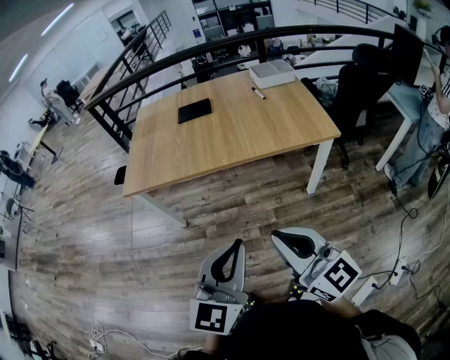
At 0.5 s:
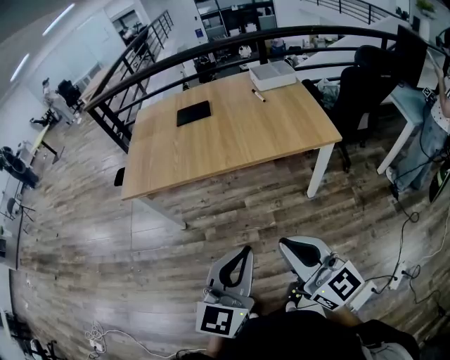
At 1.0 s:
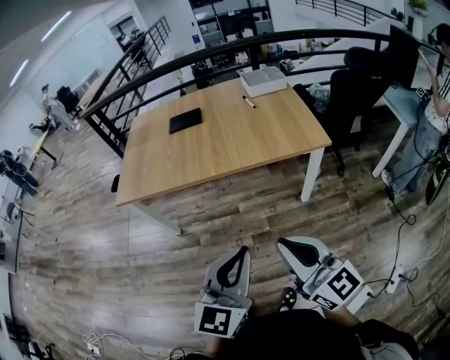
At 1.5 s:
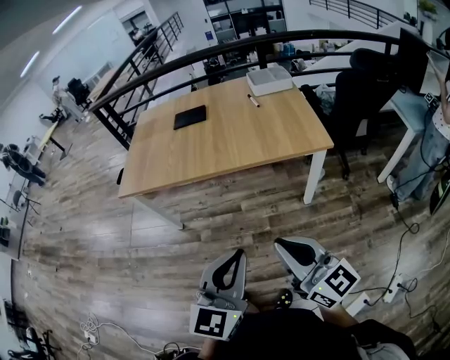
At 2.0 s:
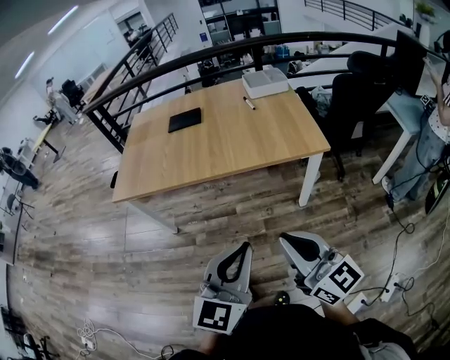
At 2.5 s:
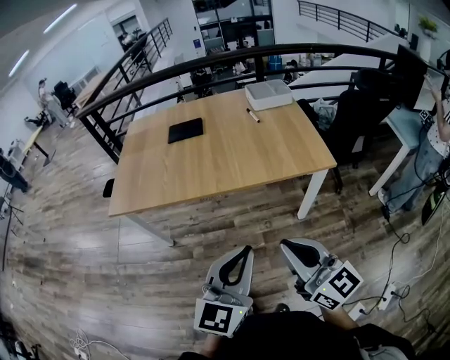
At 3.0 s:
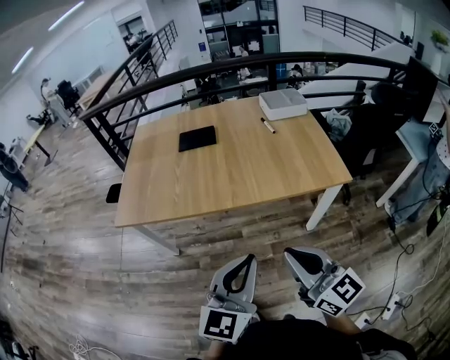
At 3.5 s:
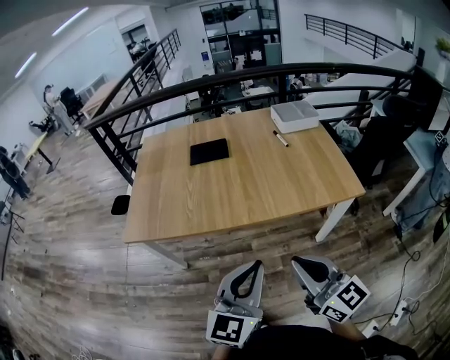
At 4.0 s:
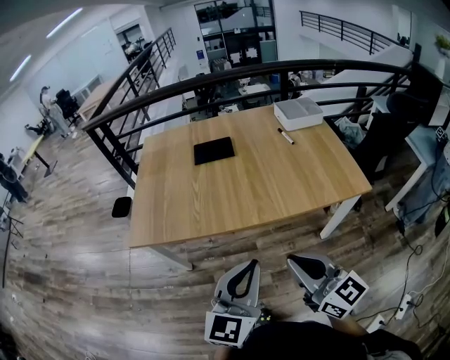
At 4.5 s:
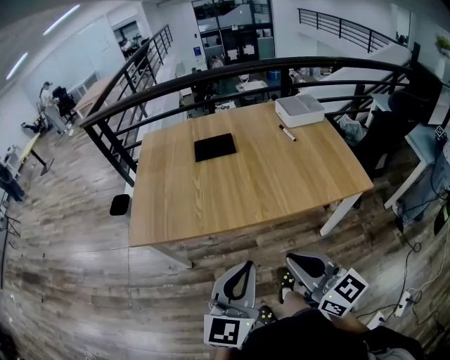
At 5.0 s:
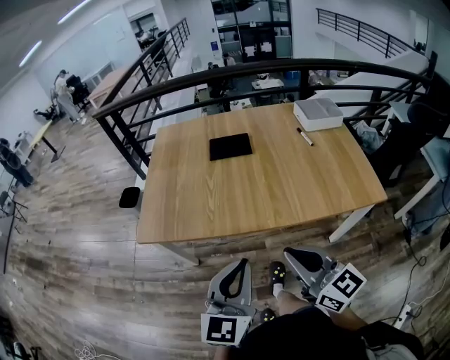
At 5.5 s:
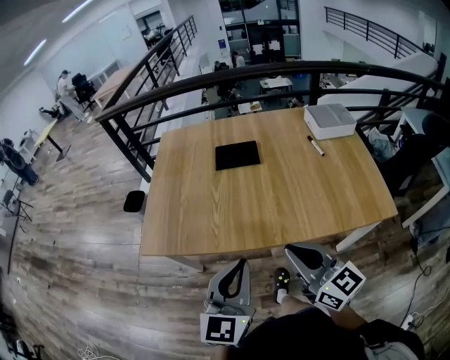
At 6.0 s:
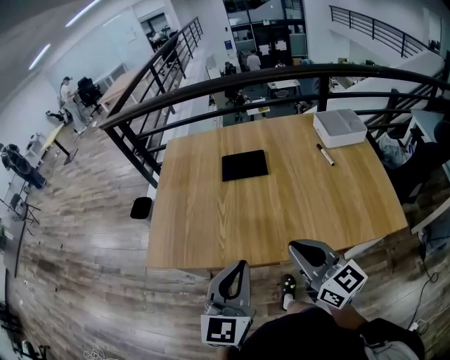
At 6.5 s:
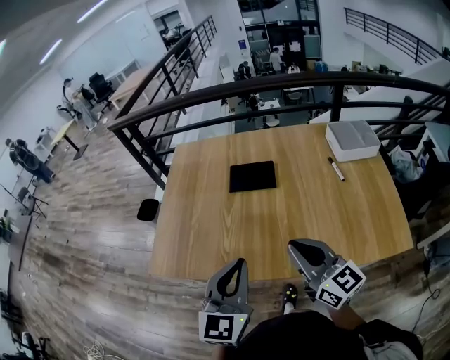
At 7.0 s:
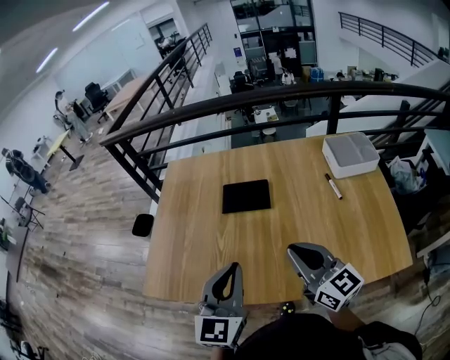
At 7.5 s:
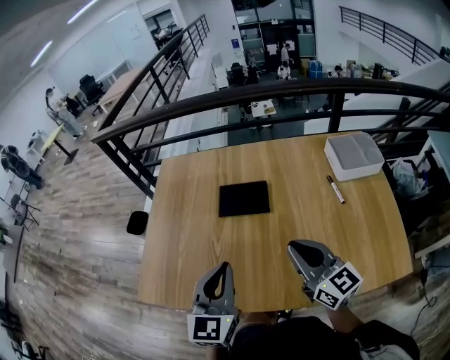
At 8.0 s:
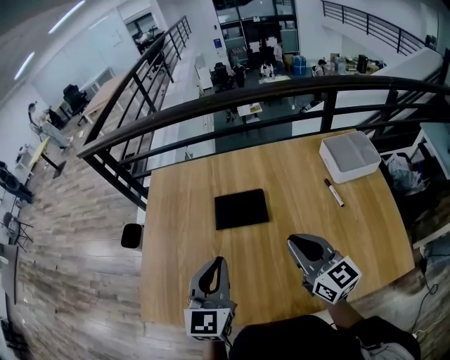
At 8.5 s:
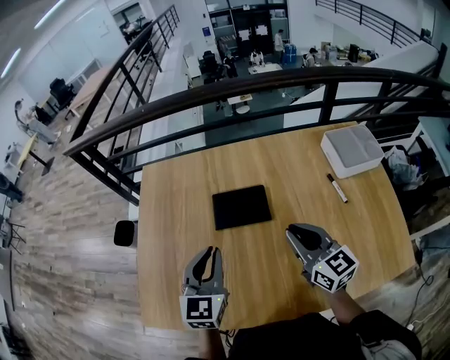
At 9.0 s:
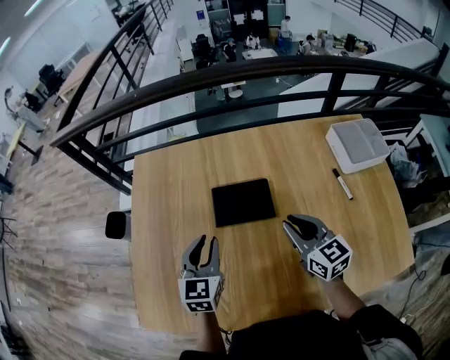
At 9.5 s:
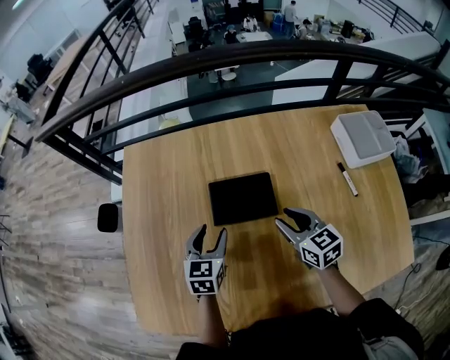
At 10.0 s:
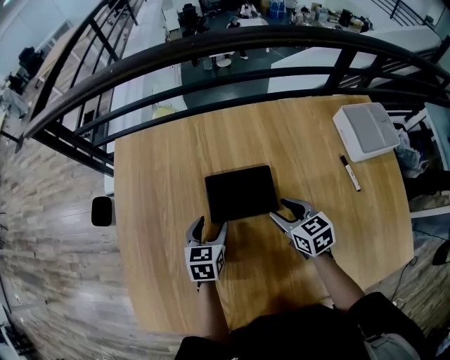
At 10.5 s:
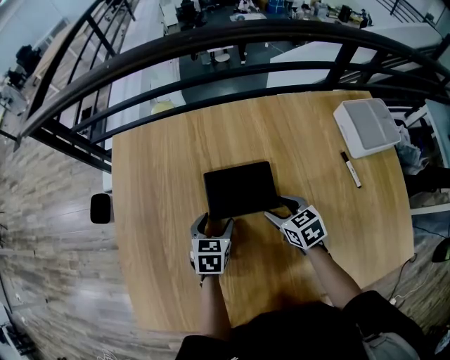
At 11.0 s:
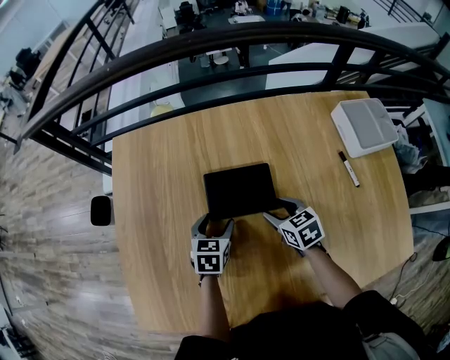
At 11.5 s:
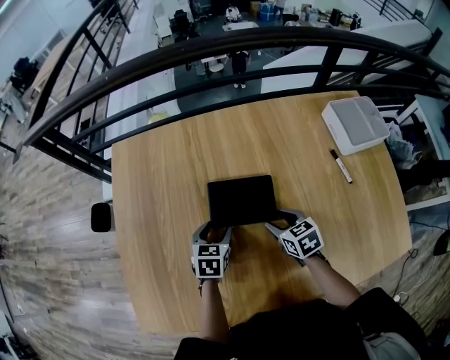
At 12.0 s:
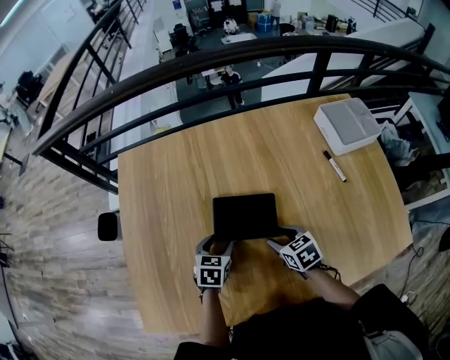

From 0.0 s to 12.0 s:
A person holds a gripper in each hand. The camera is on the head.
From 0.0 s to 2.0 s: The two grippers go approximately 15 cm to the right.
From 2.0 s to 4.0 s: The left gripper goes some 30 cm forward and to the left. Meanwhile the right gripper shifts approximately 30 cm to the left and forward.
From 4.0 s to 6.0 s: The grippers both shift forward by approximately 20 cm.
From 6.0 s to 8.0 s: Both grippers travel together forward, about 30 cm.
From 8.0 s to 10.0 s: The two grippers go approximately 30 cm downward and forward. The left gripper swivels about 30 degrees, and opens up. The right gripper angles its fingers downward, by approximately 30 degrees, and opens.
From 10.0 s to 12.0 s: Both grippers move backward, roughly 10 cm.

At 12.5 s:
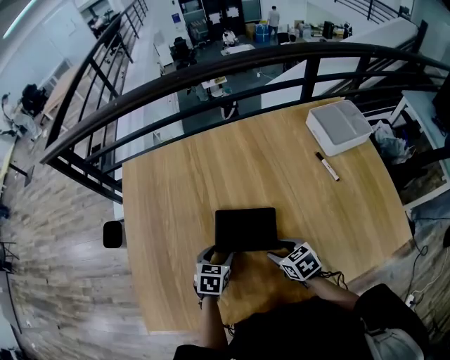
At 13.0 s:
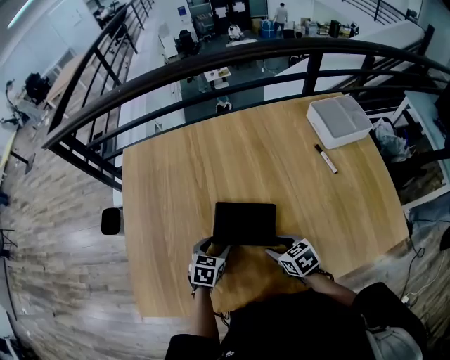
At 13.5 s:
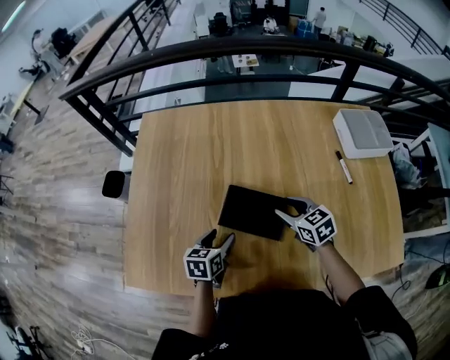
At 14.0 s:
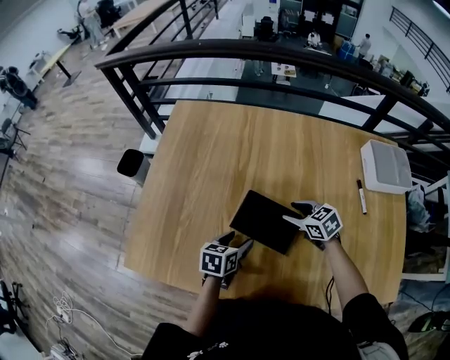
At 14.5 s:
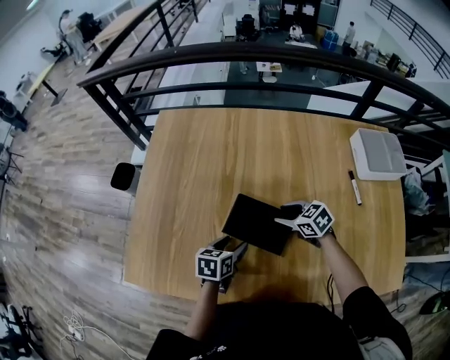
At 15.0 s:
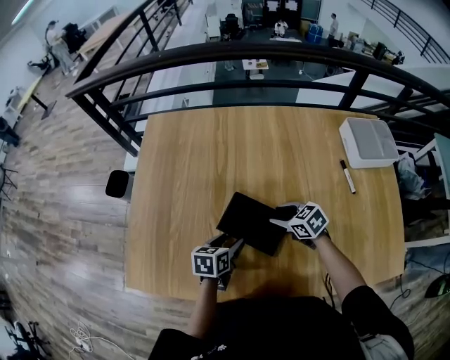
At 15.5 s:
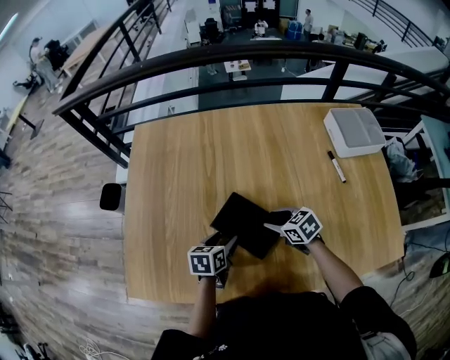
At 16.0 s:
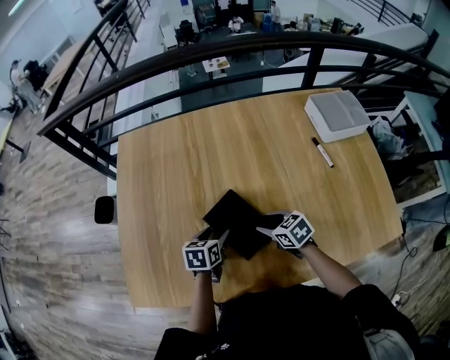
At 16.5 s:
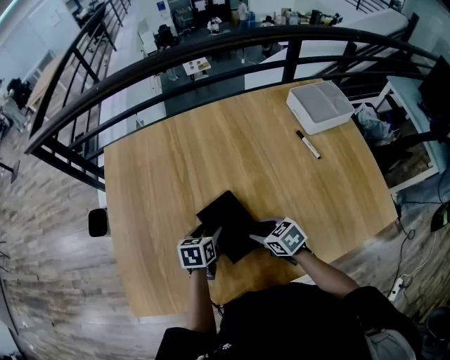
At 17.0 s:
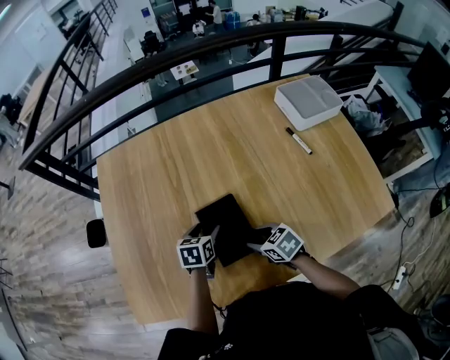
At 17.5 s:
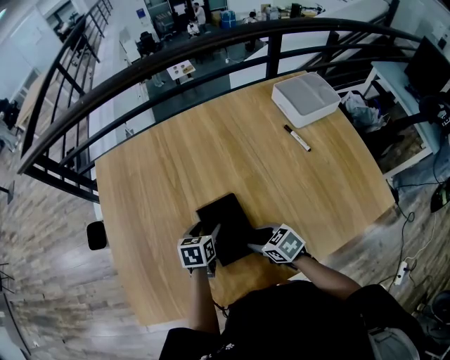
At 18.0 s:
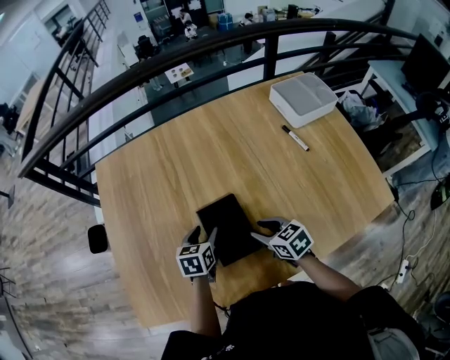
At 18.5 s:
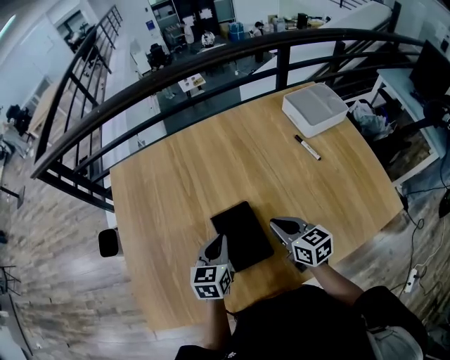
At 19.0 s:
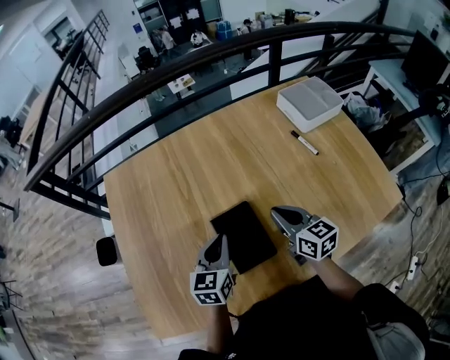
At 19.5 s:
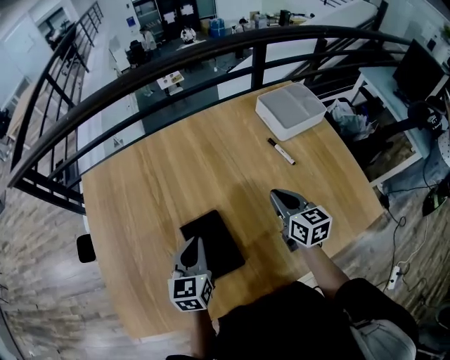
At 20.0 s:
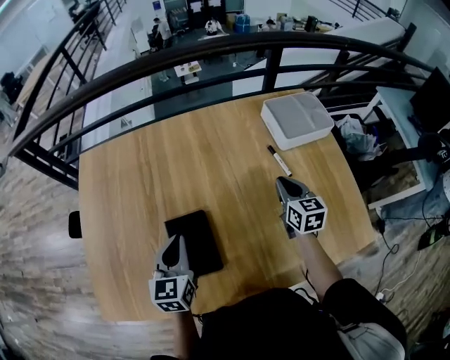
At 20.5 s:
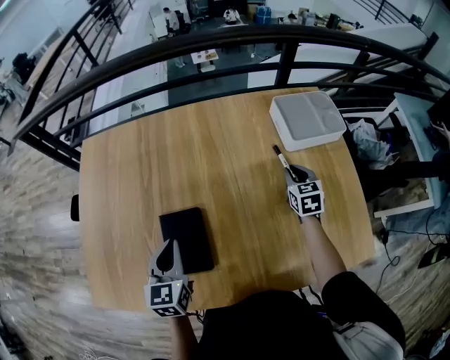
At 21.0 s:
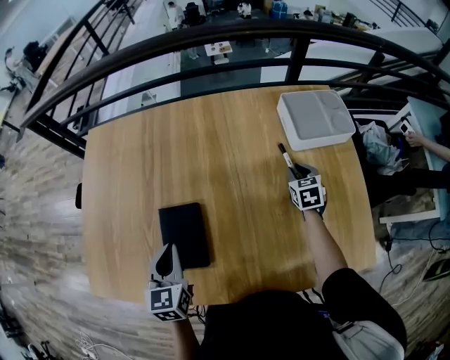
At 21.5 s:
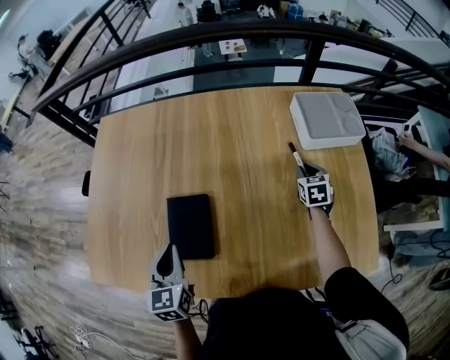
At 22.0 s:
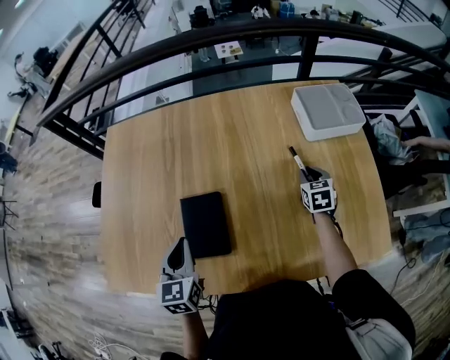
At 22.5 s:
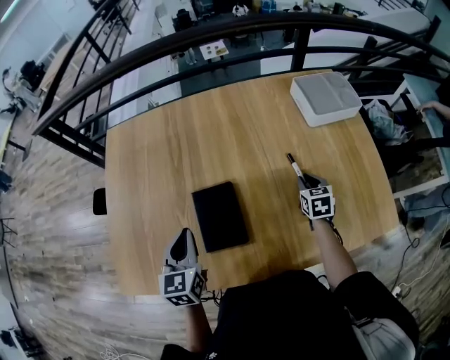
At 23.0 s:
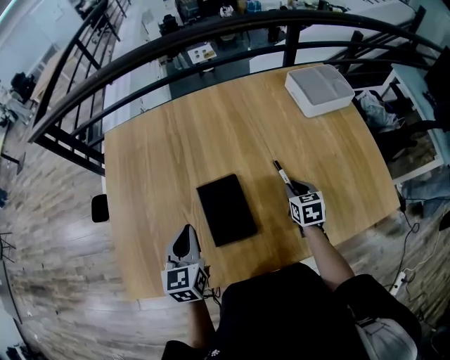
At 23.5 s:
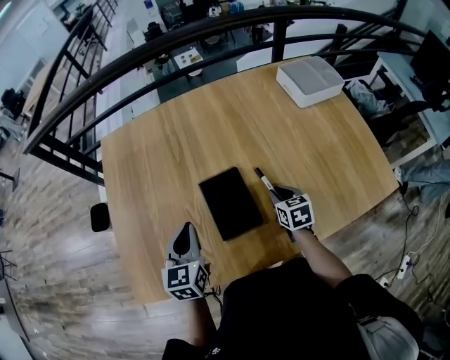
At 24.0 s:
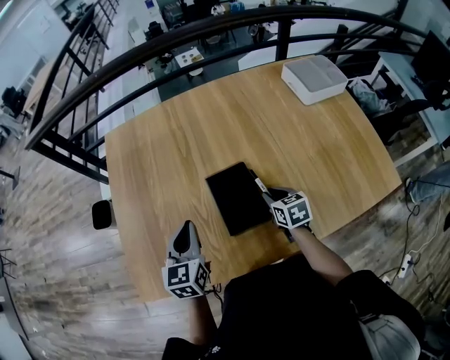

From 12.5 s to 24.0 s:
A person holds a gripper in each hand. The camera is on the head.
From 12.5 s to 14.5 s: The right gripper heads forward, covering about 10 cm, and rotates about 30 degrees, while the left gripper rotates some 30 degrees.
From 14.5 s to 16.5 s: The right gripper heads backward, covering approximately 10 cm, and rotates some 20 degrees.
From 16.5 s to 18.5 s: The two grippers go some 10 cm upward. The right gripper swivels some 30 degrees, and closes up. The left gripper rotates about 20 degrees, and closes up.
From 18.5 s to 20.0 s: The left gripper heads upward, covering some 5 cm; the right gripper moves to the right and forward, approximately 25 cm.
From 20.0 s to 22.0 s: The left gripper heads backward, covering about 5 cm. Meanwhile the right gripper heads downward, covering about 10 cm, and changes its angle by roughly 20 degrees.
From 22.0 s to 24.0 s: The right gripper shifts some 30 cm to the left and backward, while the left gripper moves to the left, about 15 cm.

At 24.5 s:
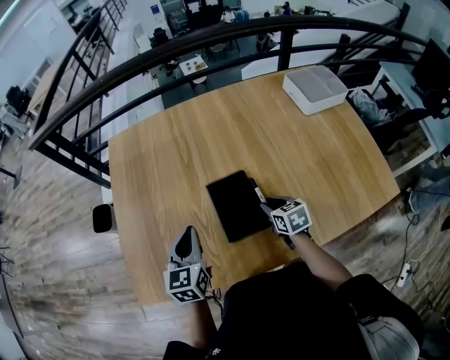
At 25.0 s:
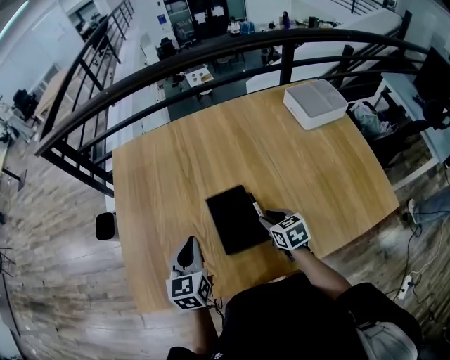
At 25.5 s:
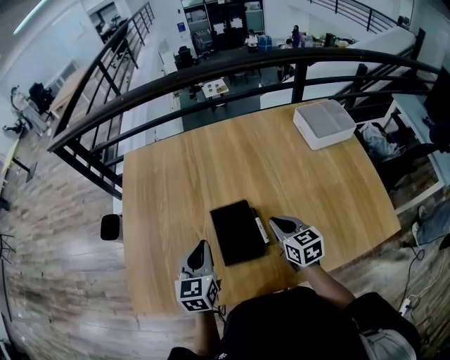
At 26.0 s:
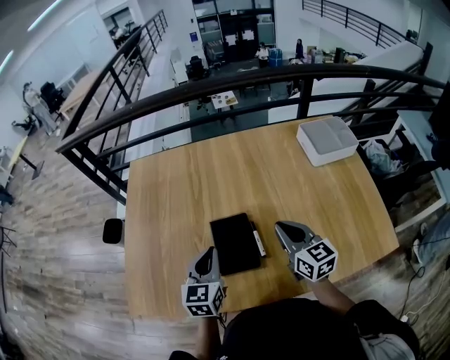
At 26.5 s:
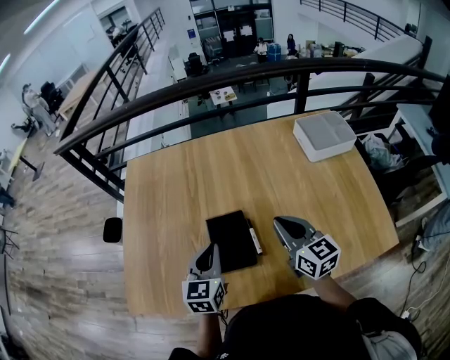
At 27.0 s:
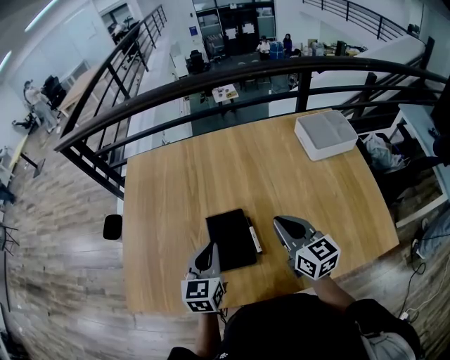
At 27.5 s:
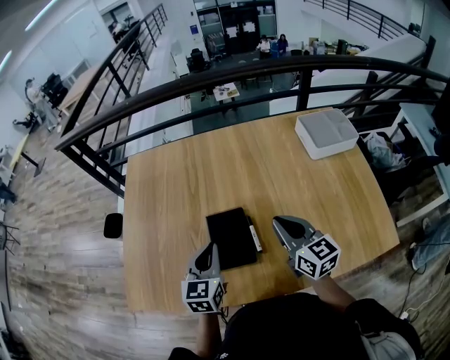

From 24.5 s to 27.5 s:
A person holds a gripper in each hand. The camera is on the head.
From 24.5 s to 26.0 s: The left gripper heads to the right, covering approximately 10 cm. Meanwhile the right gripper goes some 20 cm upward, tips its fingers upward by roughly 30 degrees, and closes up.
From 26.0 s to 27.5 s: There are only small adjustments of the grippers.
